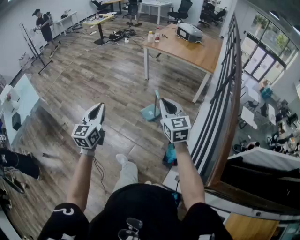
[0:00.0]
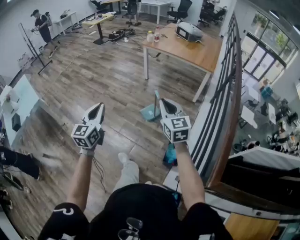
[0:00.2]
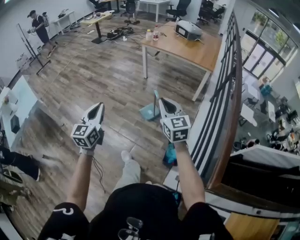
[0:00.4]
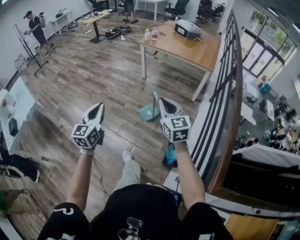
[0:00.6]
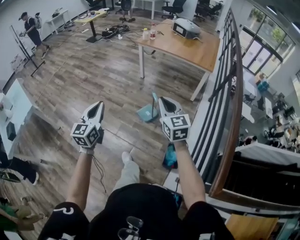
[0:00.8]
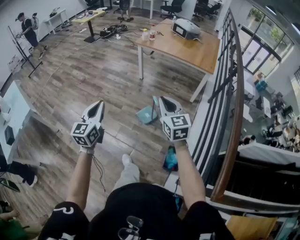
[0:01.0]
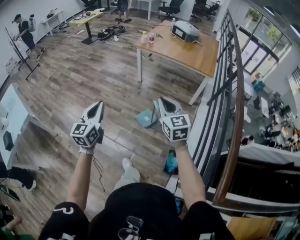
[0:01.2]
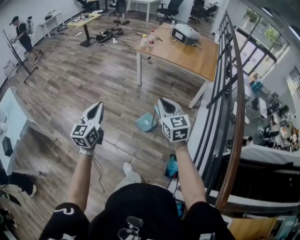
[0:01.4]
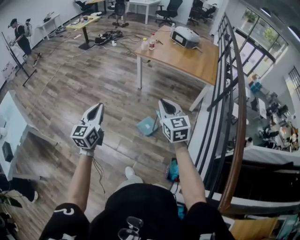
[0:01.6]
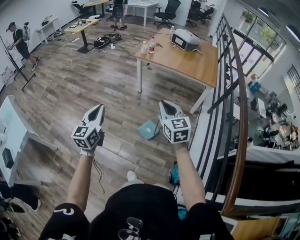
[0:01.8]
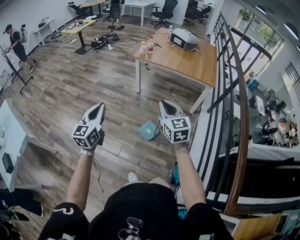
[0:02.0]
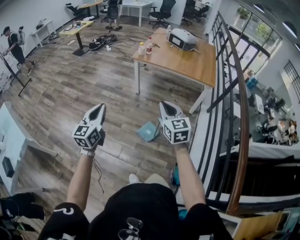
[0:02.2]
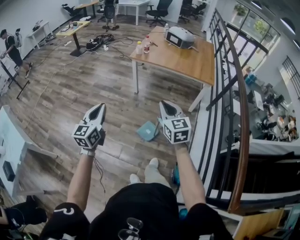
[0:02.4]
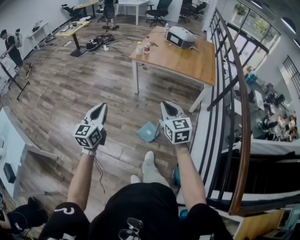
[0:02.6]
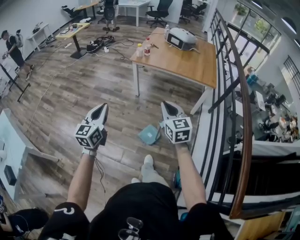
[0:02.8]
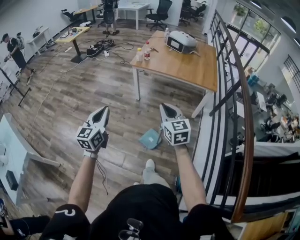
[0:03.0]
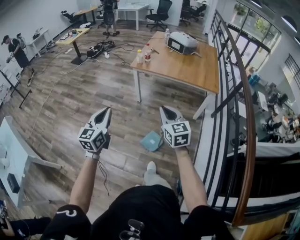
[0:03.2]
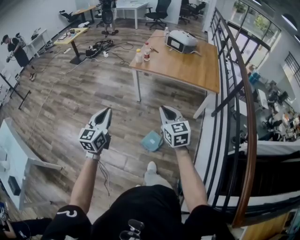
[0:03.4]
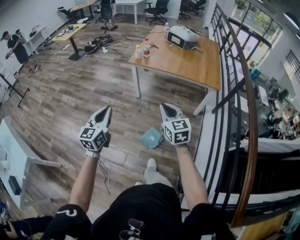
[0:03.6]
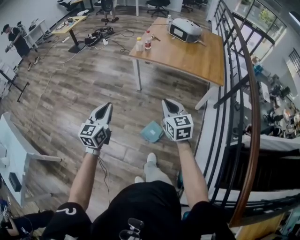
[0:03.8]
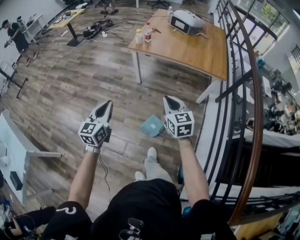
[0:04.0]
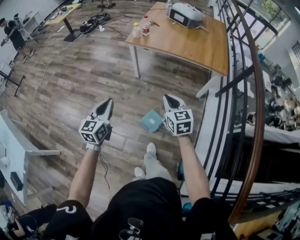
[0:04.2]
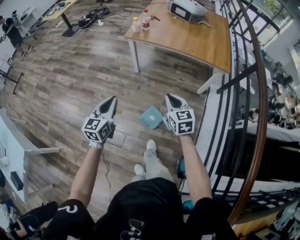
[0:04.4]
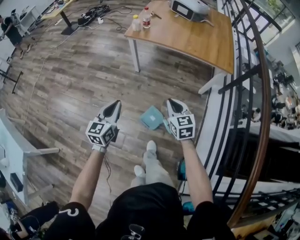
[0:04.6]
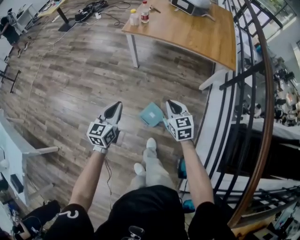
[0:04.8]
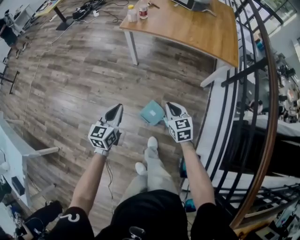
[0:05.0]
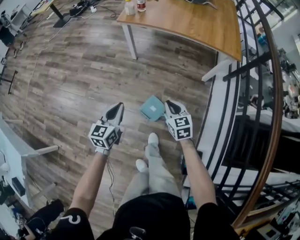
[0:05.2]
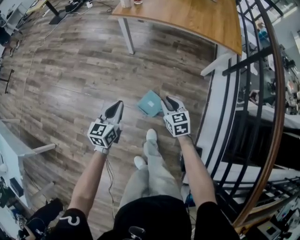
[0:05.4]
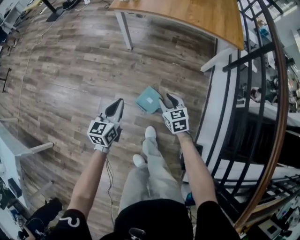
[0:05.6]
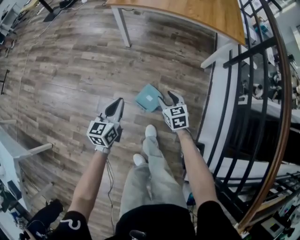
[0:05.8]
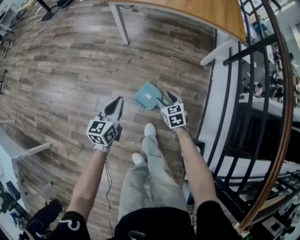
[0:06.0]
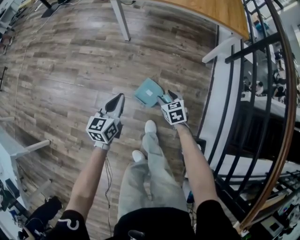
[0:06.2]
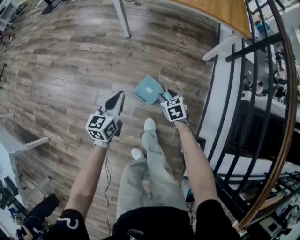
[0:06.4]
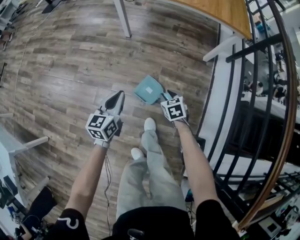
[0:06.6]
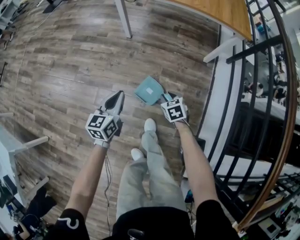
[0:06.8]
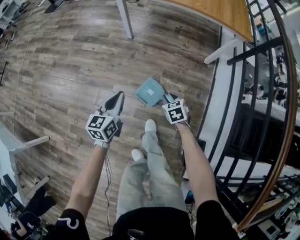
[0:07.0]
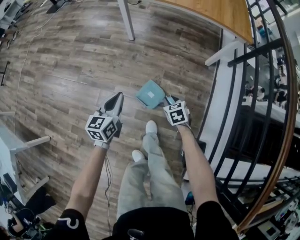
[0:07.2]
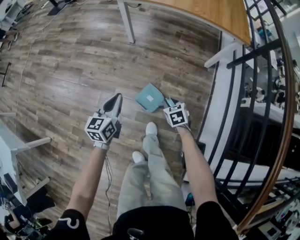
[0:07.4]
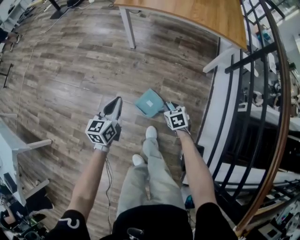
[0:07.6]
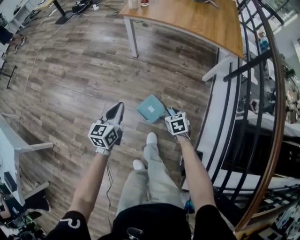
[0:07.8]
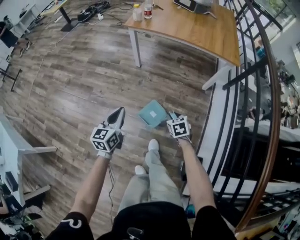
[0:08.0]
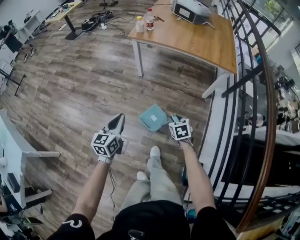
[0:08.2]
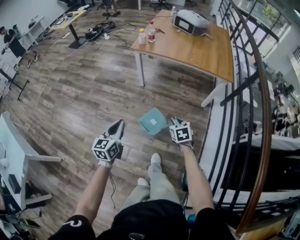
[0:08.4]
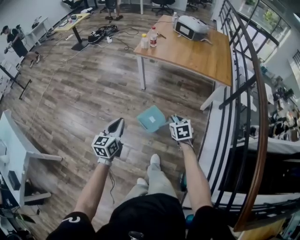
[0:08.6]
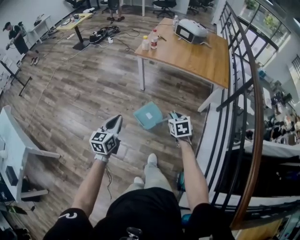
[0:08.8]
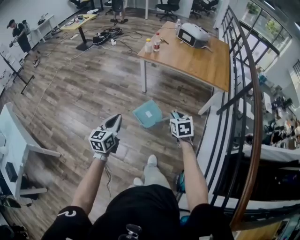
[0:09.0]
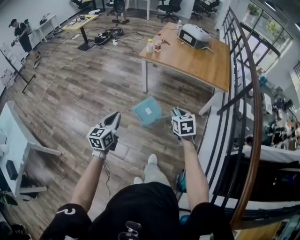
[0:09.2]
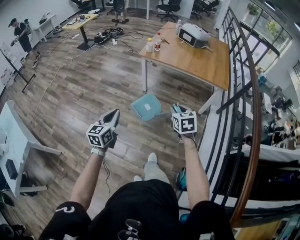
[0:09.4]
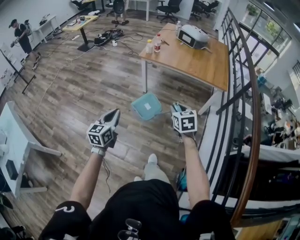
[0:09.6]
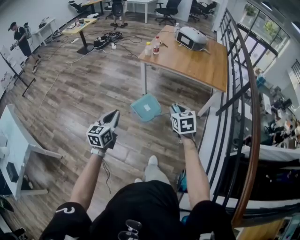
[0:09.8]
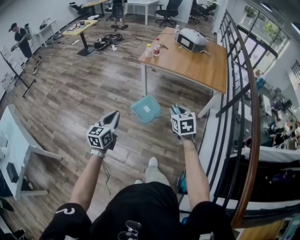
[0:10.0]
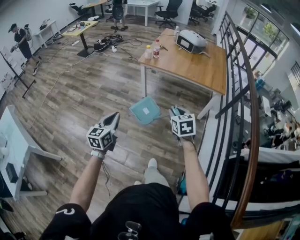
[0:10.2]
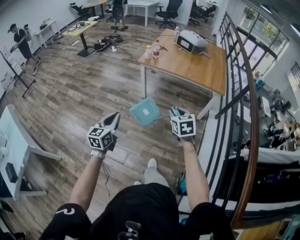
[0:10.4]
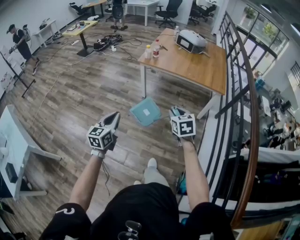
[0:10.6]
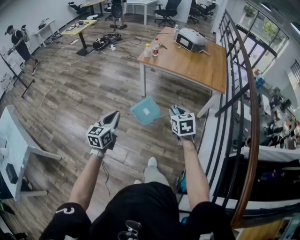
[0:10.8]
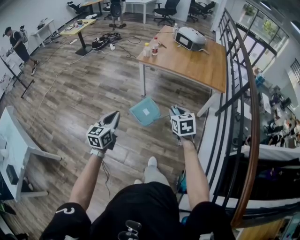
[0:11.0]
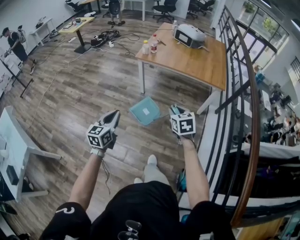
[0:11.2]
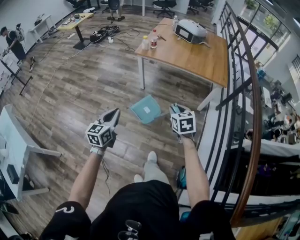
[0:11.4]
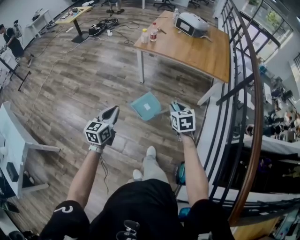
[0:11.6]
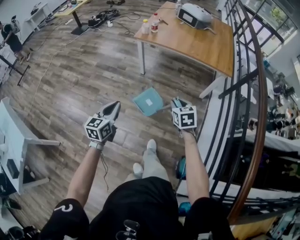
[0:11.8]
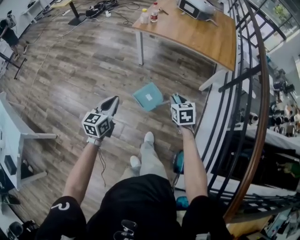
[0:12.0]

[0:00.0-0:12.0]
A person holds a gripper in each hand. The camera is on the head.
0:00.0 to 0:01.6: Both grippers travel together forward, roughly 30 cm.
0:01.6 to 0:03.0: Both grippers move forward, some 15 cm.
0:03.0 to 0:04.4: The left gripper is displaced forward and downward by roughly 20 cm; the right gripper is displaced downward and forward by approximately 20 cm.
0:04.4 to 0:06.0: Both grippers travel together downward, approximately 35 cm. The right gripper opens its fingers.
0:06.0 to 0:07.6: The right gripper closes.
0:07.6 to 0:09.0: The left gripper heads upward and backward, covering about 25 cm; the right gripper shifts roughly 35 cm upward.
0:09.0 to 0:10.4: The right gripper moves upward, roughly 10 cm.
0:10.4 to 0:12.0: The right gripper goes approximately 15 cm downward, while the left gripper goes some 10 cm downward and forward.

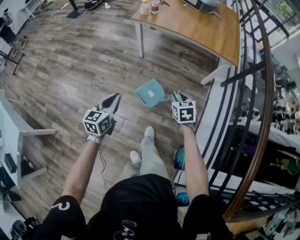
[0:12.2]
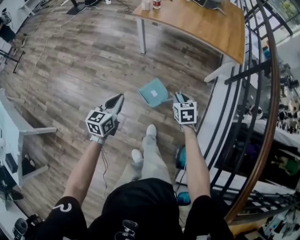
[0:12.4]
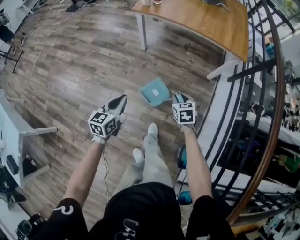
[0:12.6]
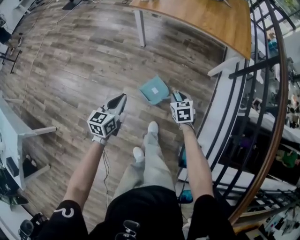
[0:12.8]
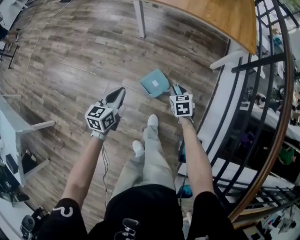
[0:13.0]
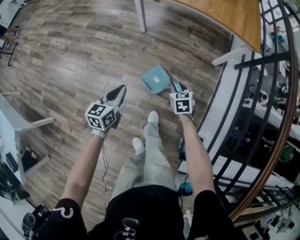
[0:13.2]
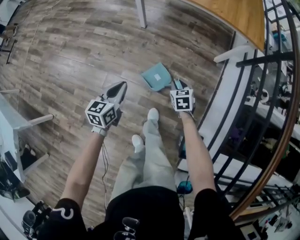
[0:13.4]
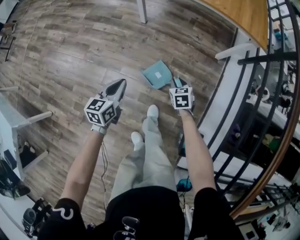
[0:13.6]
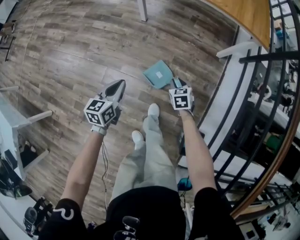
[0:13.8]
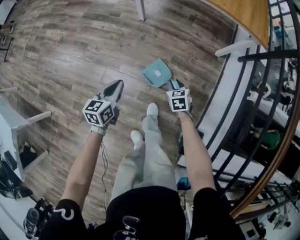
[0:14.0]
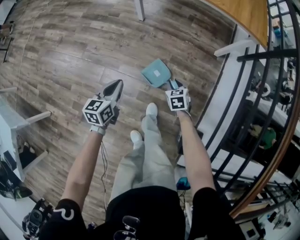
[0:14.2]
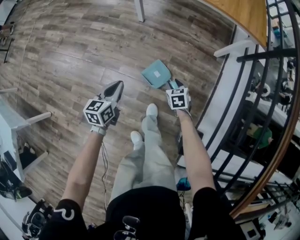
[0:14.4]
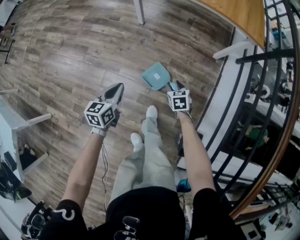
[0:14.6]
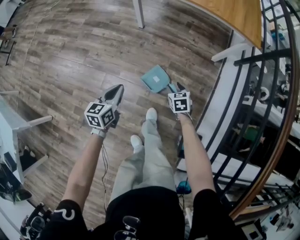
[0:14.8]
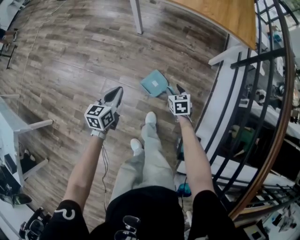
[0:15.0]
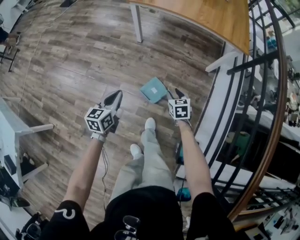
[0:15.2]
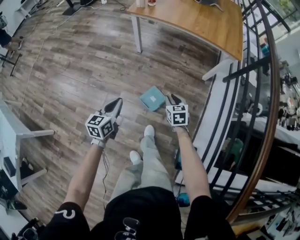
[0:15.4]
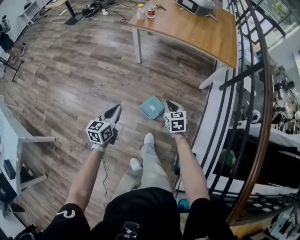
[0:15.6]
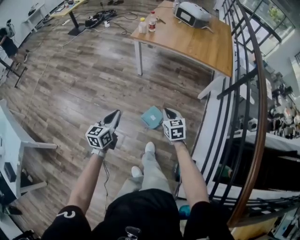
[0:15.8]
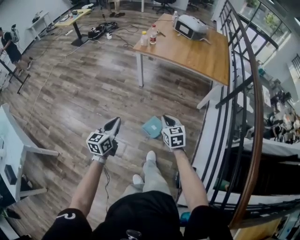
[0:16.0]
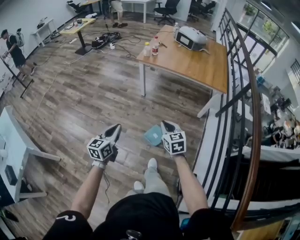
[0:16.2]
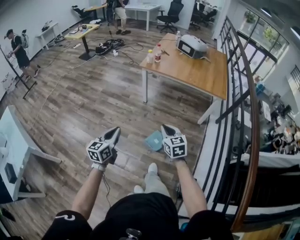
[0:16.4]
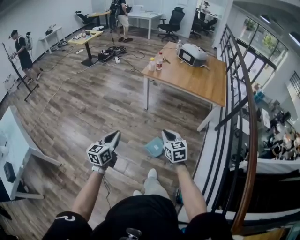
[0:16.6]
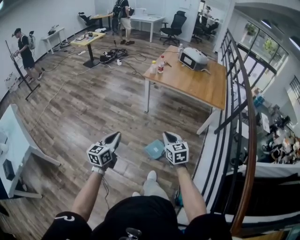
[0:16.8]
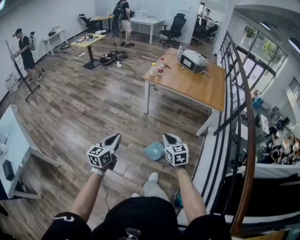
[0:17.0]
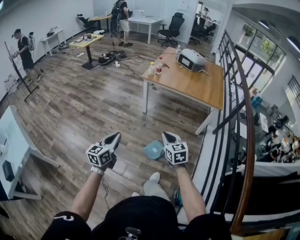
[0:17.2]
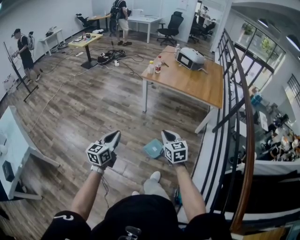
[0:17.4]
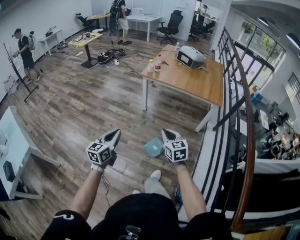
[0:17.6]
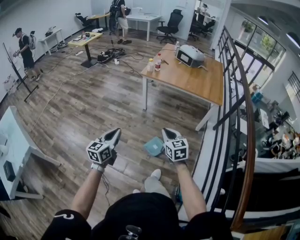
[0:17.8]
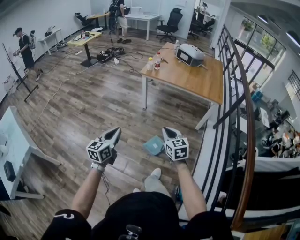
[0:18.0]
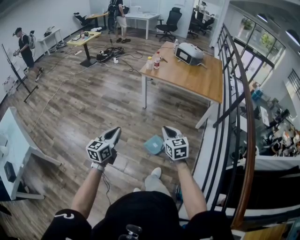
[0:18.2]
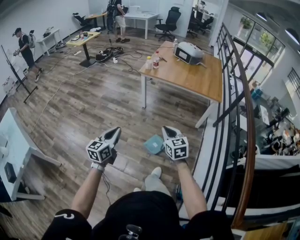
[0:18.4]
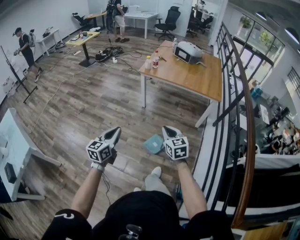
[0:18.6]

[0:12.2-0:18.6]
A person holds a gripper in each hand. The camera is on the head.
0:12.2 to 0:13.8: Both grippers move downward, about 25 cm.
0:13.8 to 0:15.4: The two grippers go roughly 15 cm upward. The right gripper opens, then closes once more.
0:15.4 to 0:17.0: The left gripper travels upward, backward and to the left by approximately 30 cm; the right gripper shifts about 35 cm upward and backward, turns by roughly 20 degrees, and closes up.
0:17.0 to 0:18.6: The grippers stay close to where they were, moving slightly.

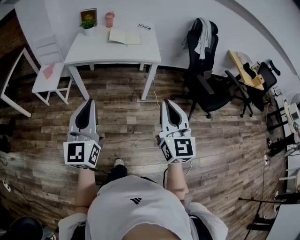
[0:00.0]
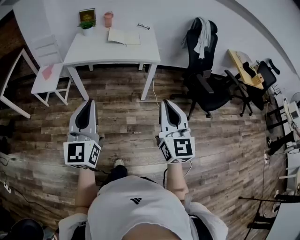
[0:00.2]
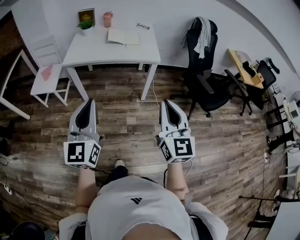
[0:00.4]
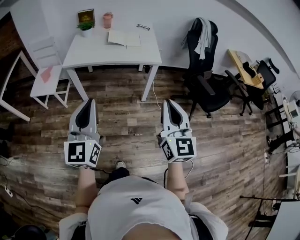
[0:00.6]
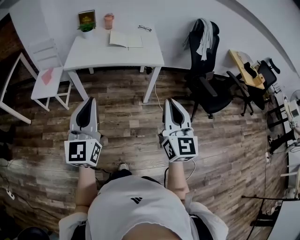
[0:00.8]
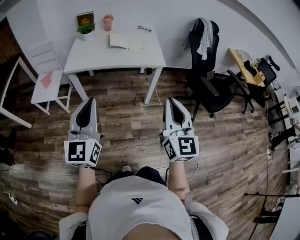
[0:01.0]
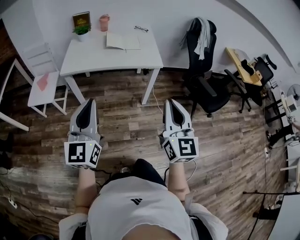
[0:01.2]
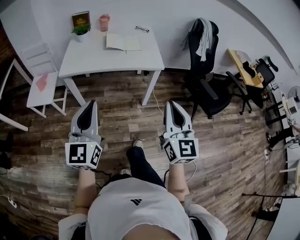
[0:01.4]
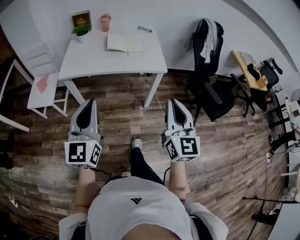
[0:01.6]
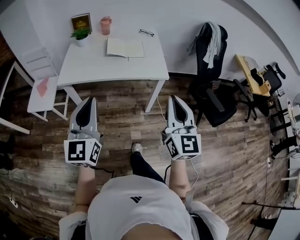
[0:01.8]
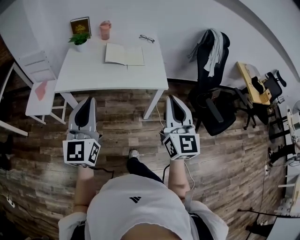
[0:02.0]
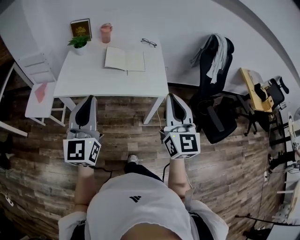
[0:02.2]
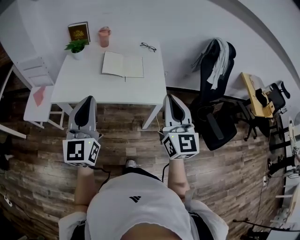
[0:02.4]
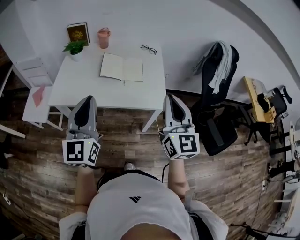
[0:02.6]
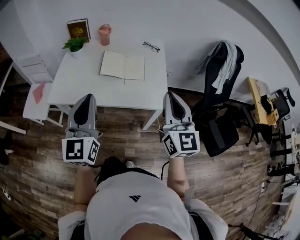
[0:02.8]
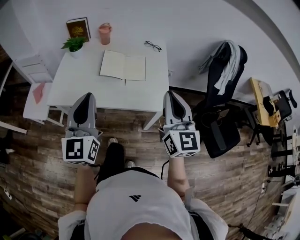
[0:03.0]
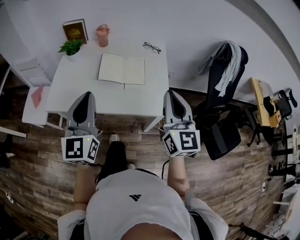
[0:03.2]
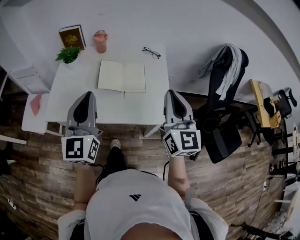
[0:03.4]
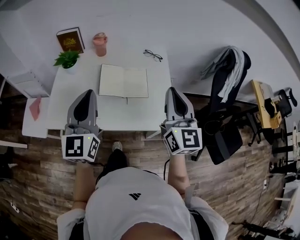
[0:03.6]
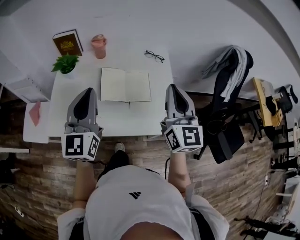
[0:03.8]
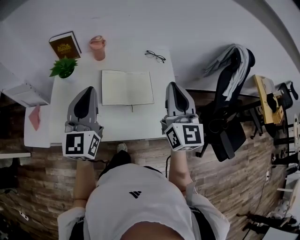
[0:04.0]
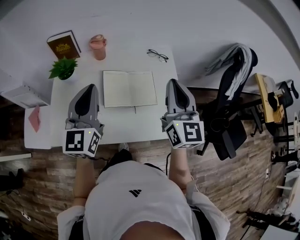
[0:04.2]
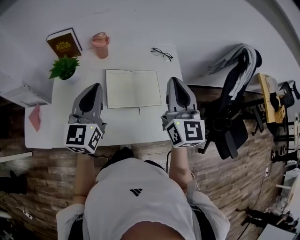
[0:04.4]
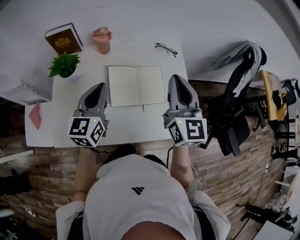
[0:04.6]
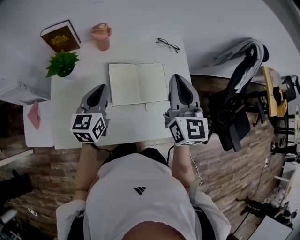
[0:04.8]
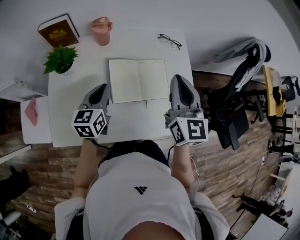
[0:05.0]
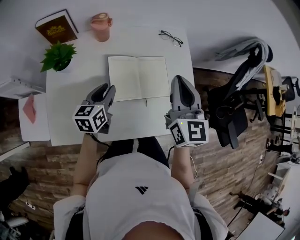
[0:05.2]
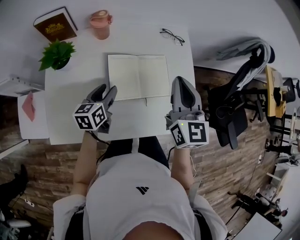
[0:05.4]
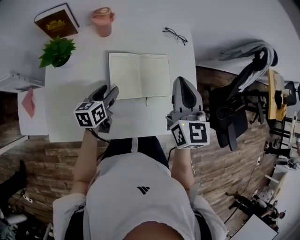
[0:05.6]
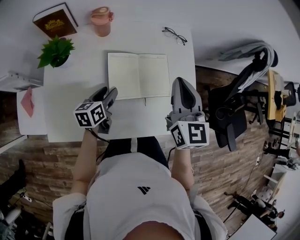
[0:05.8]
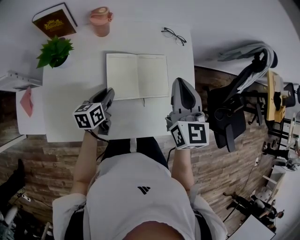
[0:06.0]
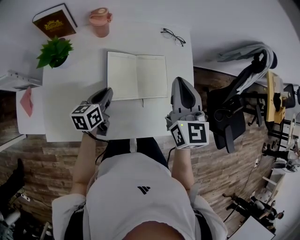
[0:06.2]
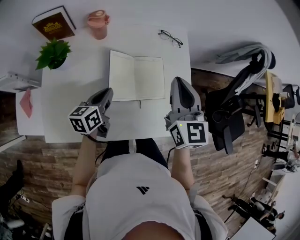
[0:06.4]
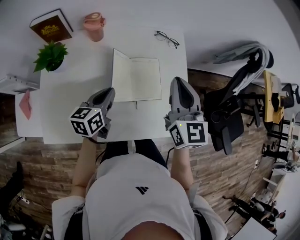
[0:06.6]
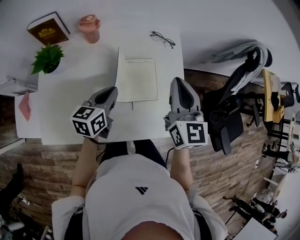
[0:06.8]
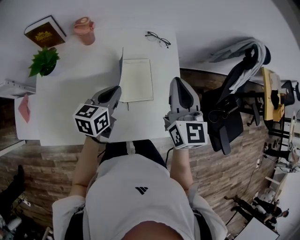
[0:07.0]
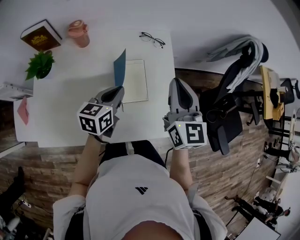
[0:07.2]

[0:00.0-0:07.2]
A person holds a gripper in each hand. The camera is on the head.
0:00.0 to 0:01.4: Both grippers move forward, roughly 10 cm.
0:01.4 to 0:02.8: Both grippers travel together forward, roughly 35 cm.
0:02.8 to 0:04.4: The two grippers go roughly 30 cm forward.
0:04.4 to 0:05.8: The left gripper travels downward by approximately 25 cm, rotates approximately 50 degrees, and opens; the right gripper is displaced downward by roughly 10 cm.
0:05.8 to 0:07.2: The left gripper goes roughly 20 cm to the right and upward, and closes its fingers, while the right gripper moves to the right, about 10 cm.
